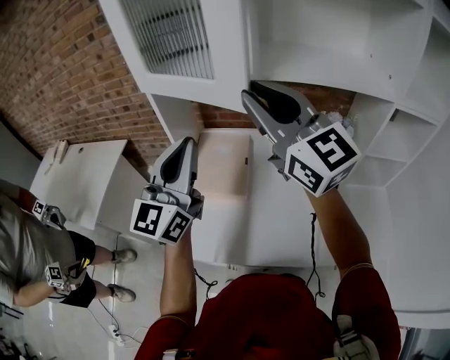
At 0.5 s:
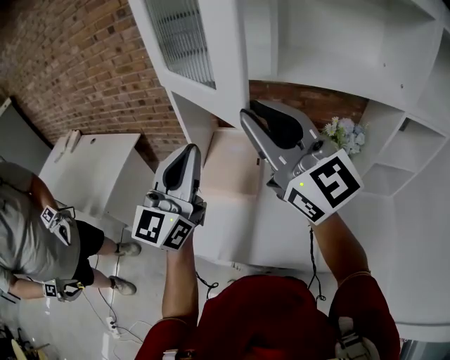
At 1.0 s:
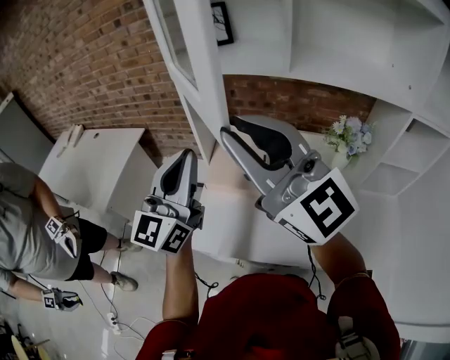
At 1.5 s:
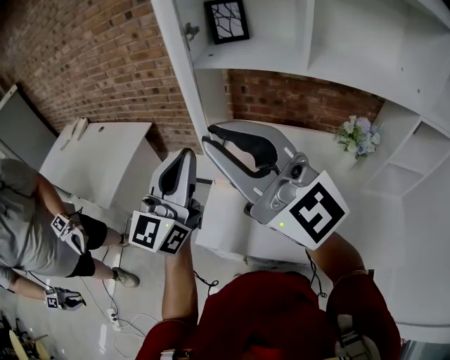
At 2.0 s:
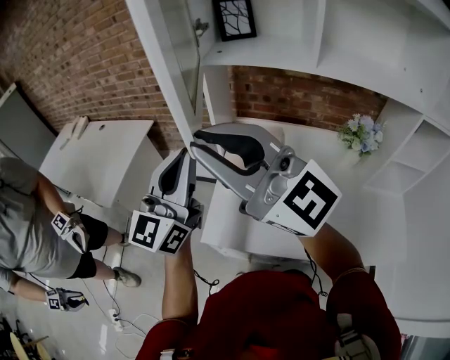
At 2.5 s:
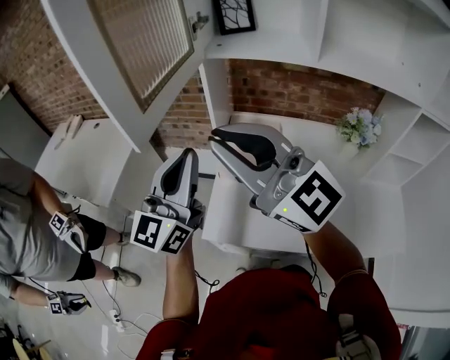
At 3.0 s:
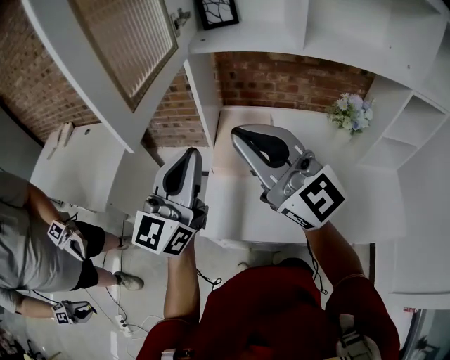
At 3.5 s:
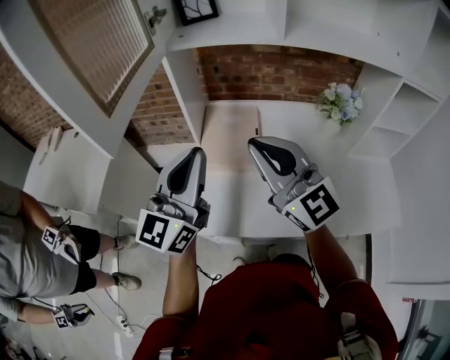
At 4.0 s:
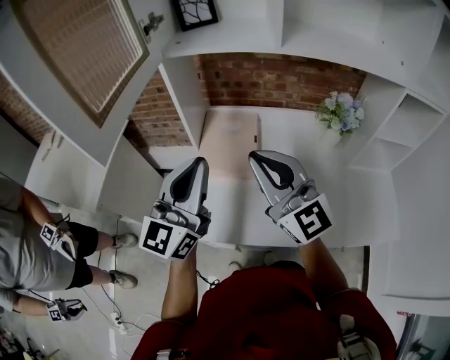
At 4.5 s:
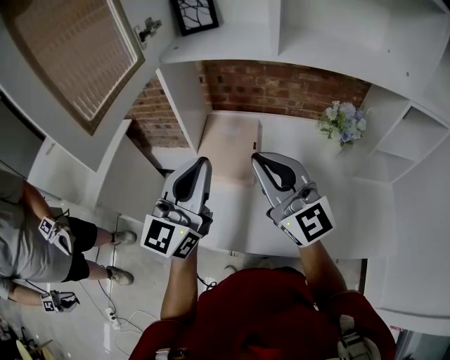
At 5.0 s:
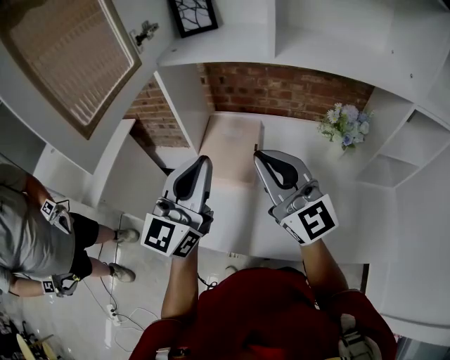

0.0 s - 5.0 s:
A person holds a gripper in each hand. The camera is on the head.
0.0 s - 2.5 s: The grippers both shift to the left by approximately 20 cm. The right gripper swivels approximately 20 degrees.
2.5 s - 5.0 s: The right gripper goes approximately 20 cm to the right and downward, while the left gripper heads to the right, covering about 15 cm.

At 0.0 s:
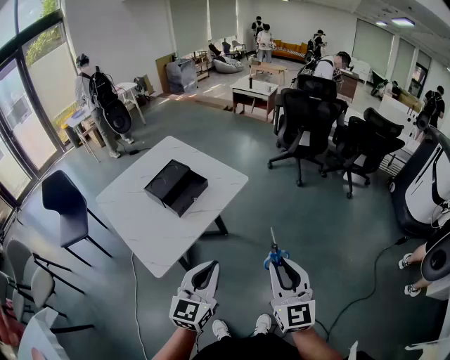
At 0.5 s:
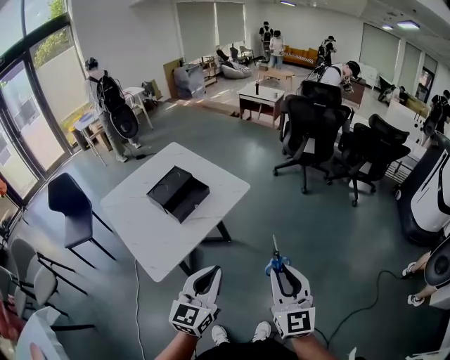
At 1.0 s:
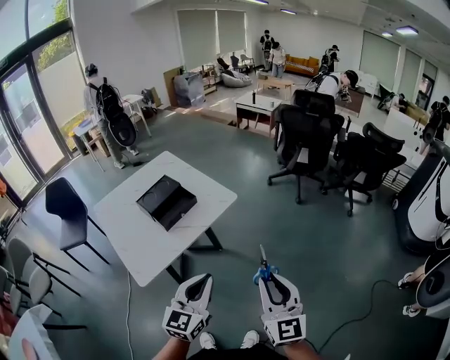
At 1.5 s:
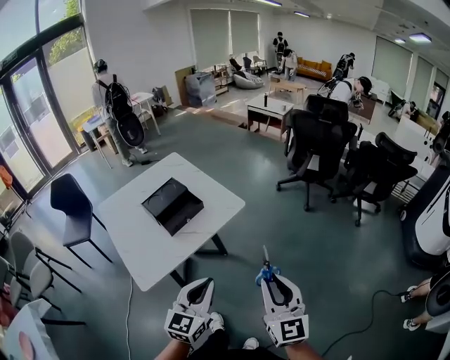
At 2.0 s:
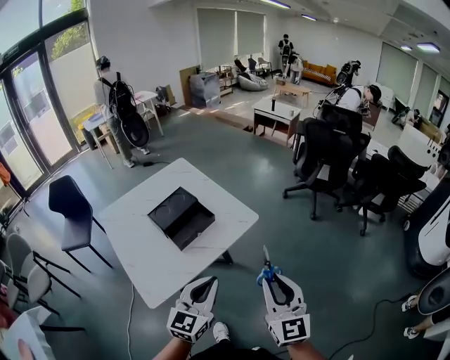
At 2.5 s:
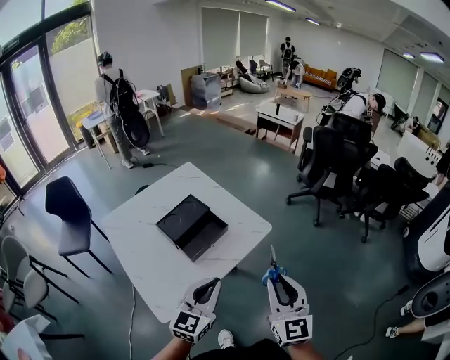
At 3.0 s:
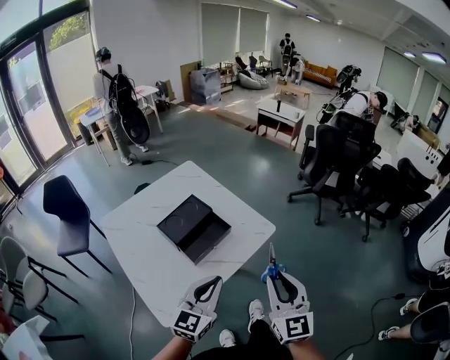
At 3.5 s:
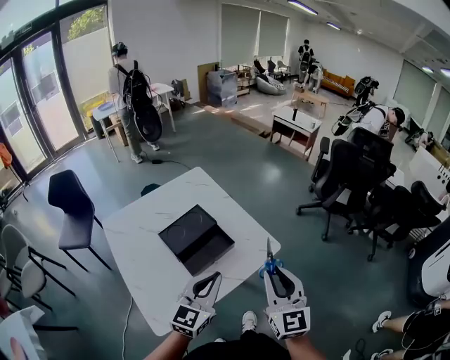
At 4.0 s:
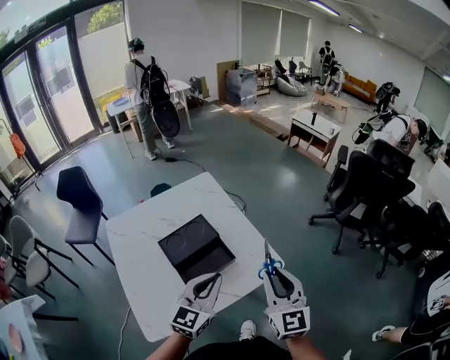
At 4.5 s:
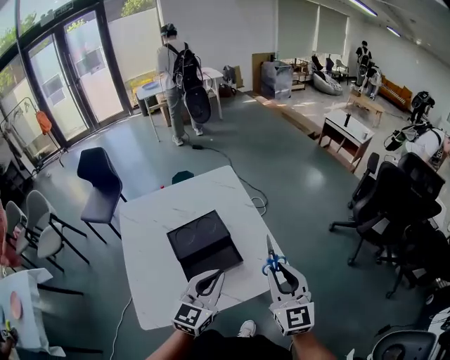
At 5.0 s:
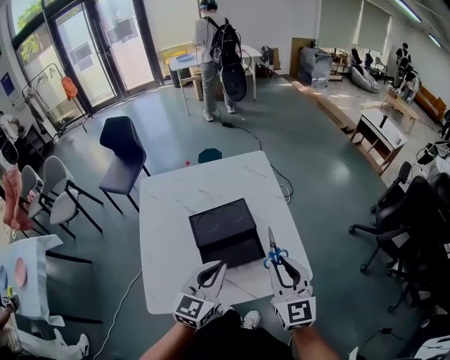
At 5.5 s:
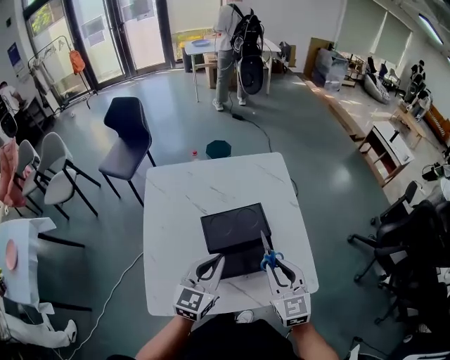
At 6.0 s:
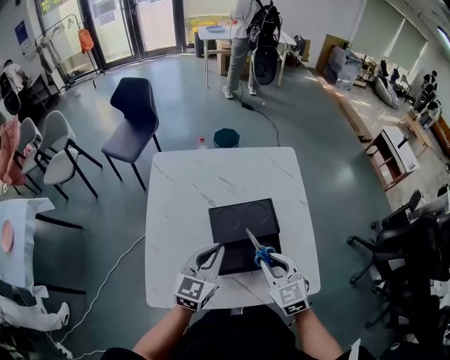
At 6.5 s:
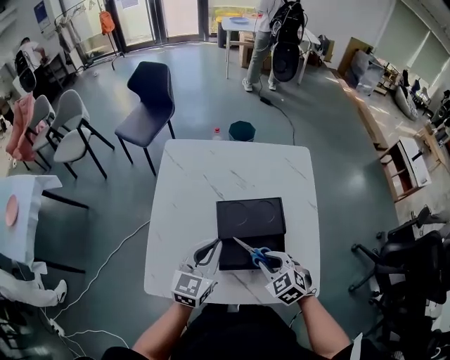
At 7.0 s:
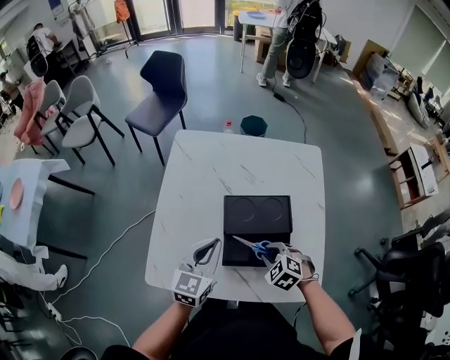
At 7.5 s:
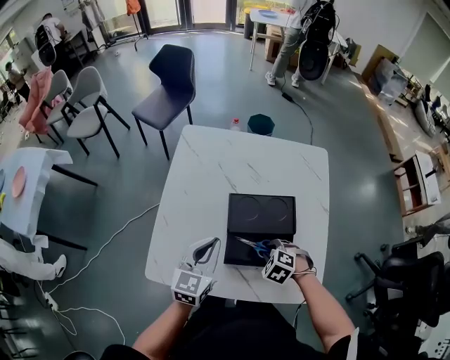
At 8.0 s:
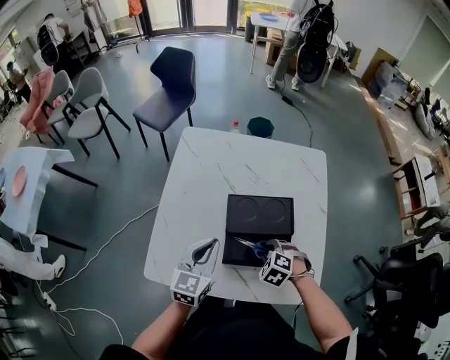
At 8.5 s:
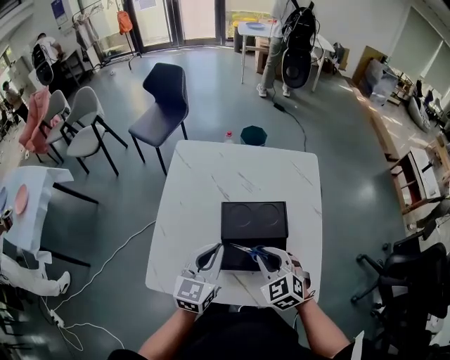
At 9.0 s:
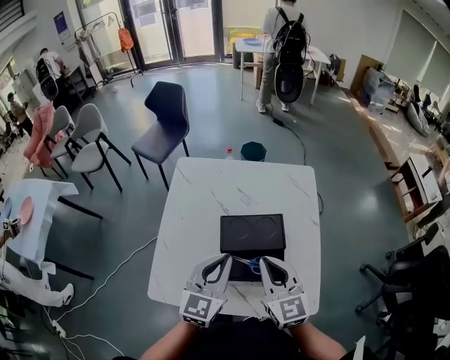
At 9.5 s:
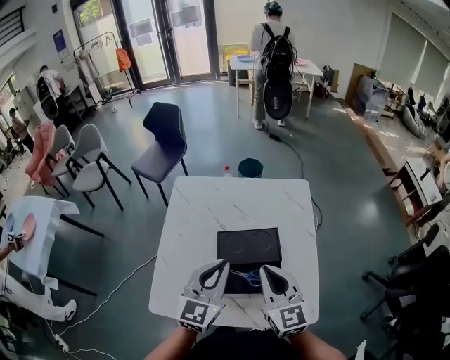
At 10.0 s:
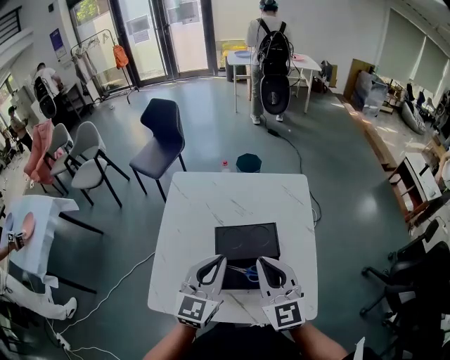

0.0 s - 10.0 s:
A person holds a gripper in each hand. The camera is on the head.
0.0 s - 2.0 s: Both grippers travel together forward, approximately 10 cm.
2.0 s - 4.0 s: Both grippers travel together forward, roughly 25 cm.
4.0 s - 6.0 s: The right gripper moves approximately 25 cm, and changes its angle by approximately 50 degrees, while the left gripper ends up some 20 cm from where it was, and rotates roughly 30 degrees.
6.0 s - 8.0 s: The right gripper is displaced downward by approximately 15 cm, and tilts its fingers some 40 degrees downward, while the left gripper shifts by some 5 cm.
8.0 s - 10.0 s: The right gripper is displaced upward by roughly 30 cm, points its fingers about 70 degrees further upward, and closes. Meanwhile the left gripper heads upward and to the right, covering roughly 15 cm.

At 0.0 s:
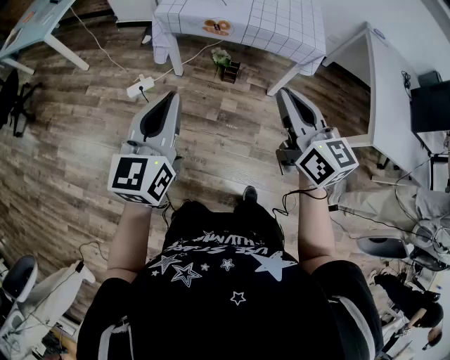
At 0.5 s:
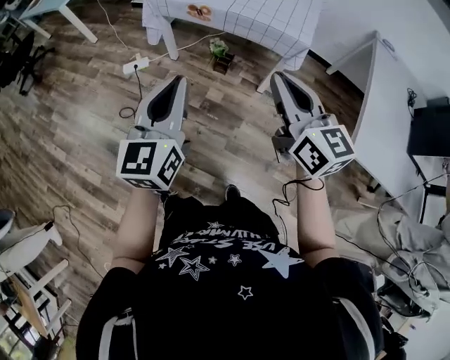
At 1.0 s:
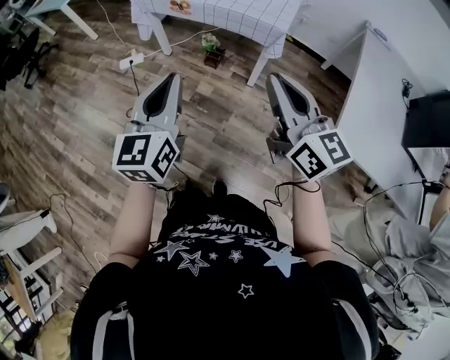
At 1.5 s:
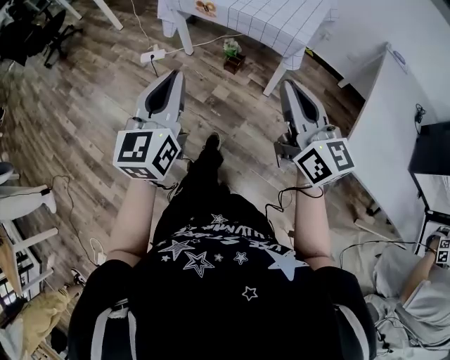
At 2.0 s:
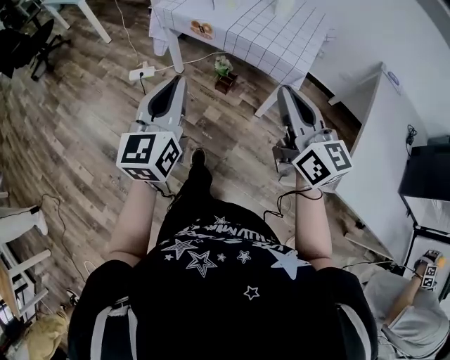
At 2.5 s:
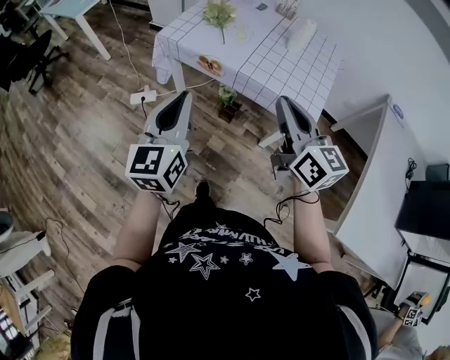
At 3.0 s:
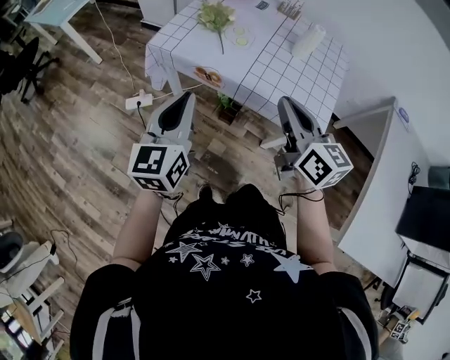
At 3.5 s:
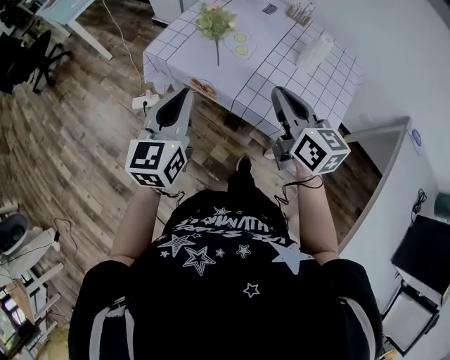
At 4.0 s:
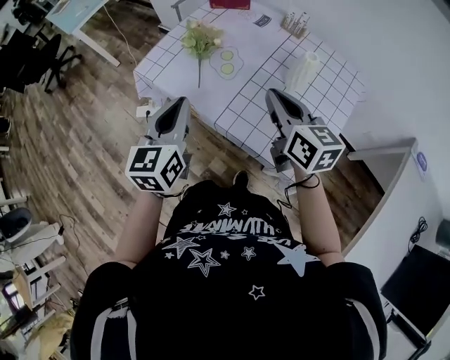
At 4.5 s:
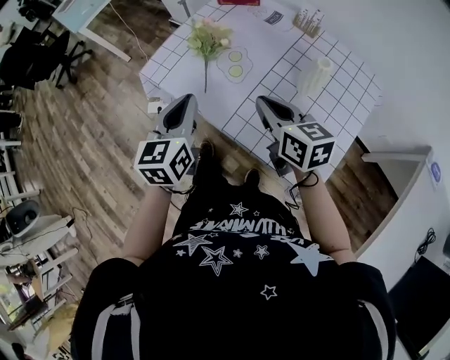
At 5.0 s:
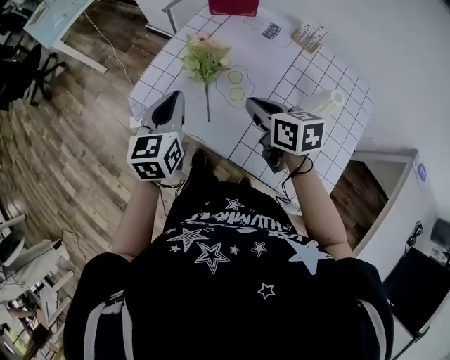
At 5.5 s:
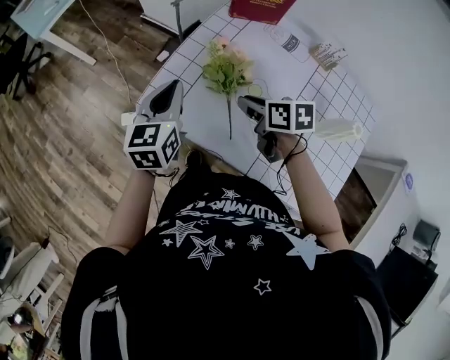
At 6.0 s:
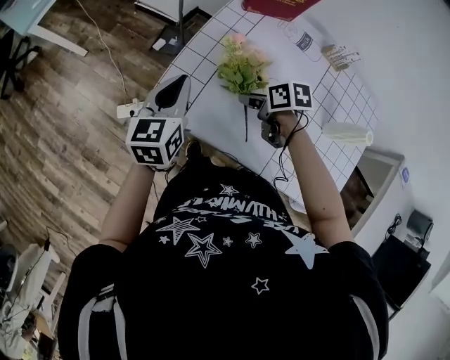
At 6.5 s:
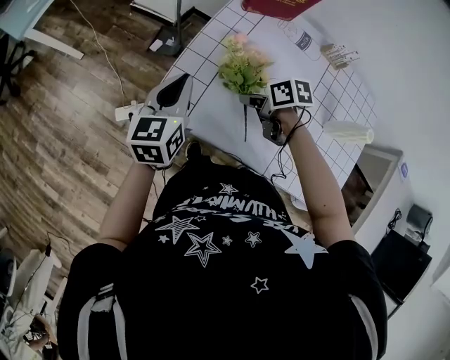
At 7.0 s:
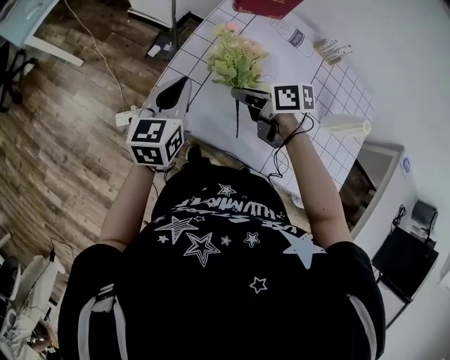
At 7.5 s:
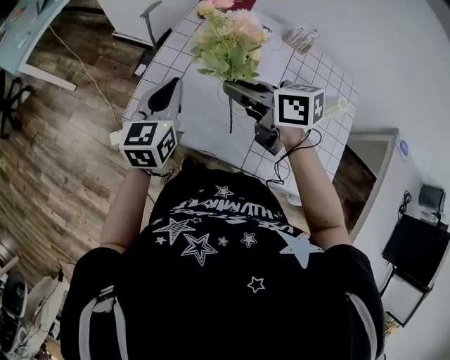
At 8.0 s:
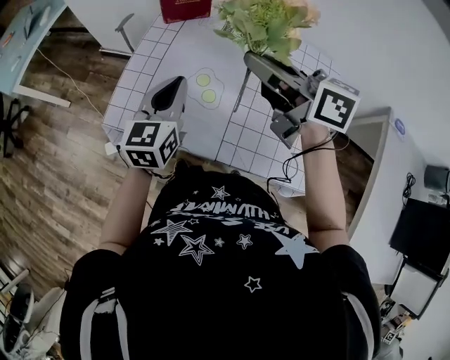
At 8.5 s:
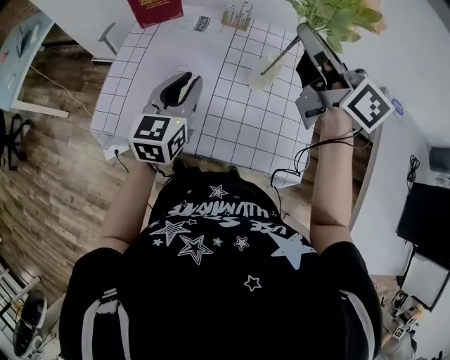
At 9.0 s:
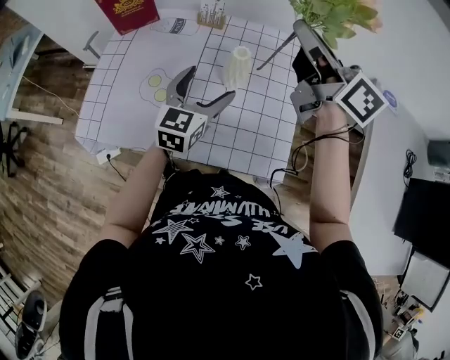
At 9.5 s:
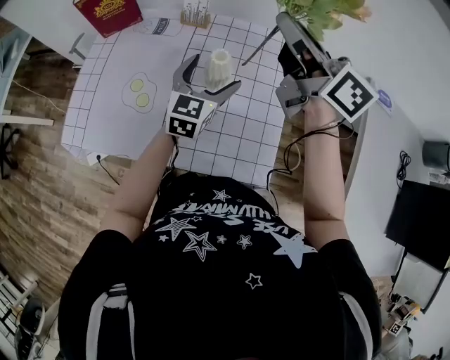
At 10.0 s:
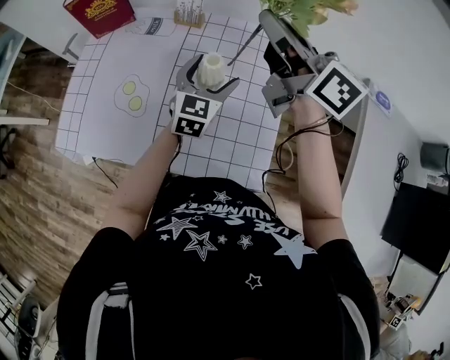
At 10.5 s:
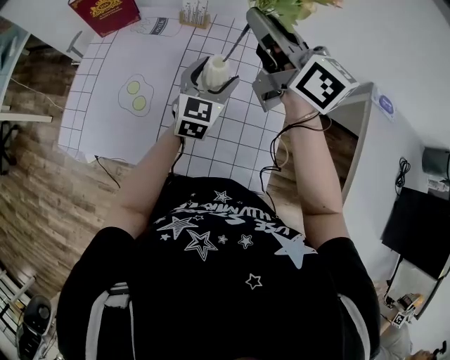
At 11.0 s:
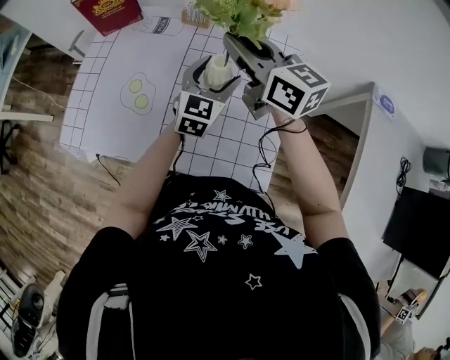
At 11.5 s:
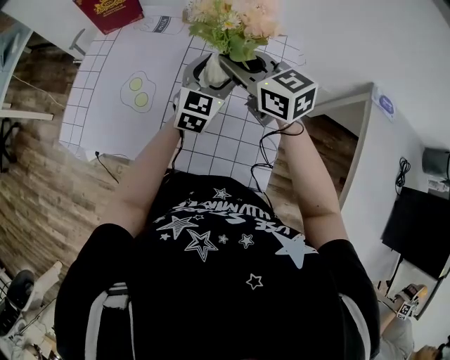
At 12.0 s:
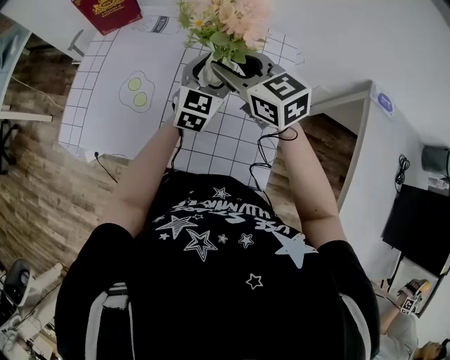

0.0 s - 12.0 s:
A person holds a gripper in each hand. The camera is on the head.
0.0 s - 2.0 s: The grippers both shift to the right by roughly 25 cm.
2.0 s - 4.0 s: The pair of grippers is taken forward, some 40 cm.
4.0 s - 6.0 s: The left gripper heads forward, covering approximately 30 cm; the right gripper shifts approximately 35 cm forward, downward and to the left, points its fingers approximately 40 degrees further downward, and opens up.
6.0 s - 8.0 s: The left gripper goes some 25 cm to the right, backward and upward; the right gripper shifts some 35 cm upward, angles its fingers upward, by approximately 50 degrees, and closes its fingers.
8.0 s - 10.0 s: The two grippers go some 30 cm to the right. The right gripper turns by approximately 20 degrees; the left gripper opens.
10.0 s - 12.0 s: The right gripper moves downward and to the left, some 15 cm, rotates approximately 40 degrees, and opens its fingers.
